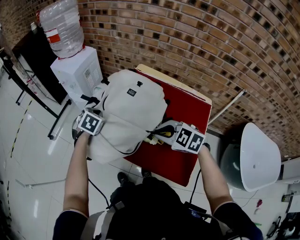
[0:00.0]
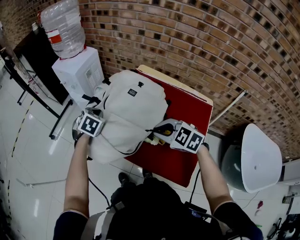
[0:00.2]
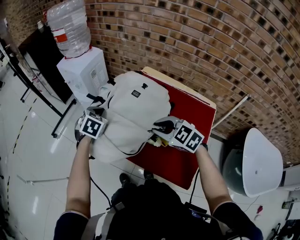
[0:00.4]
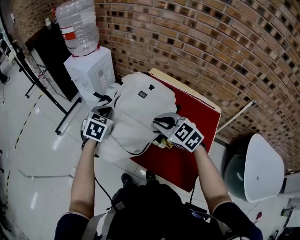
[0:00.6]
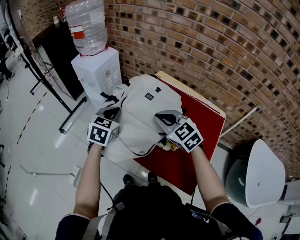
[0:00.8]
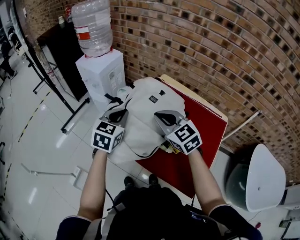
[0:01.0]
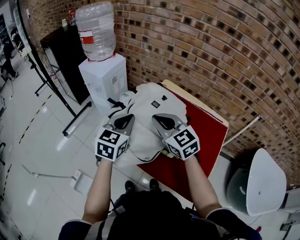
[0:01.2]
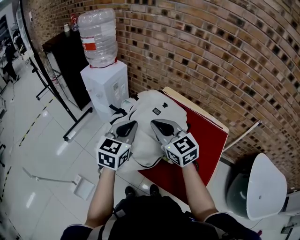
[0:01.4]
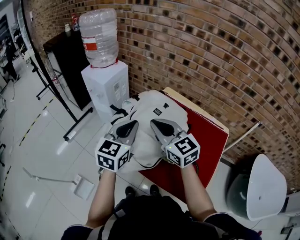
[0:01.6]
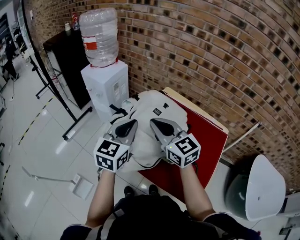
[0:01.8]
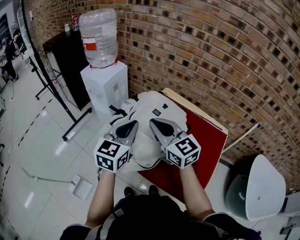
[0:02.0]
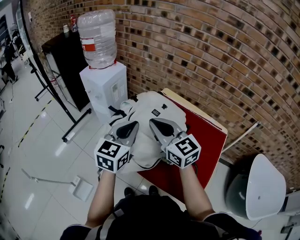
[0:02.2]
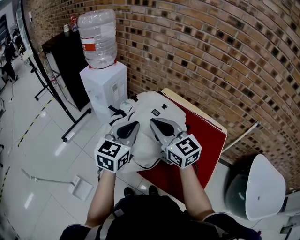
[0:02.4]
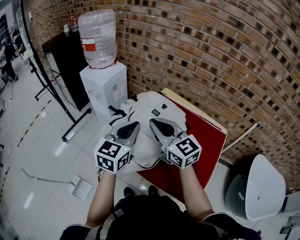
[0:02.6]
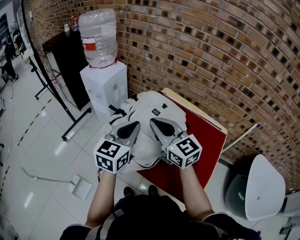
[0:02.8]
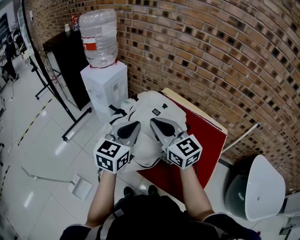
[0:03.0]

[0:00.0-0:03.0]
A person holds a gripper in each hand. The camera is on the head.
0:00.0 to 0:01.6: The left gripper shifts some 20 cm upward and backward, and tips its fingers upward by roughly 40 degrees. Meanwhile the right gripper goes approximately 20 cm upward, forward and to the left, and tilts its fingers about 40 degrees upward.
0:01.6 to 0:03.0: The grippers make only small movements.

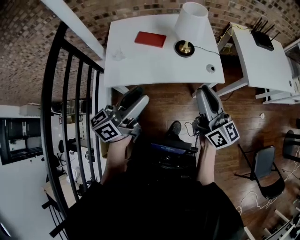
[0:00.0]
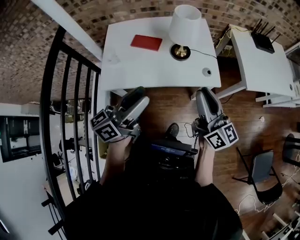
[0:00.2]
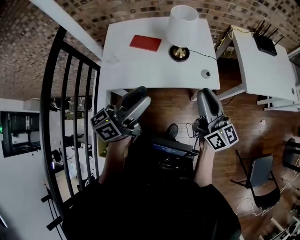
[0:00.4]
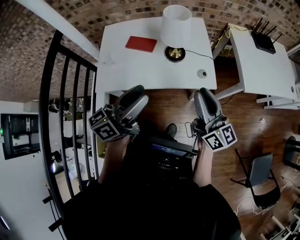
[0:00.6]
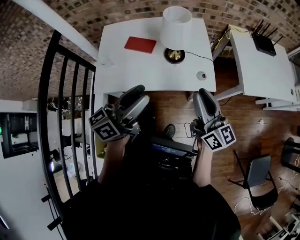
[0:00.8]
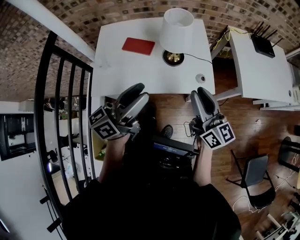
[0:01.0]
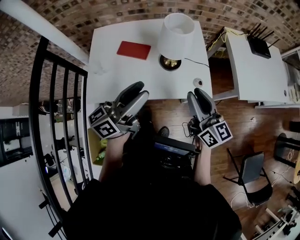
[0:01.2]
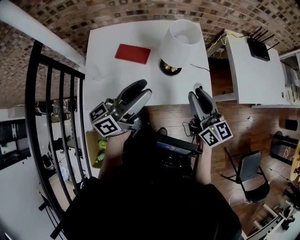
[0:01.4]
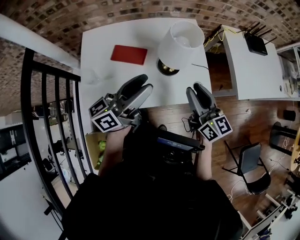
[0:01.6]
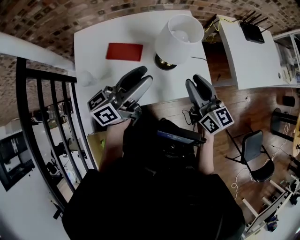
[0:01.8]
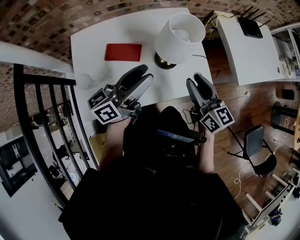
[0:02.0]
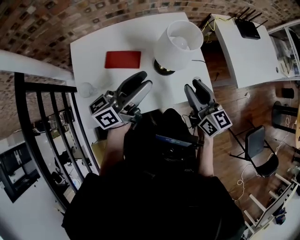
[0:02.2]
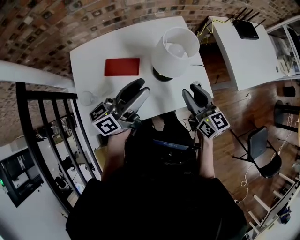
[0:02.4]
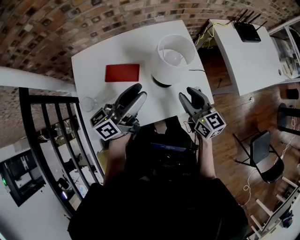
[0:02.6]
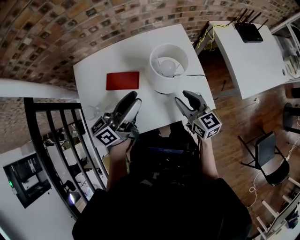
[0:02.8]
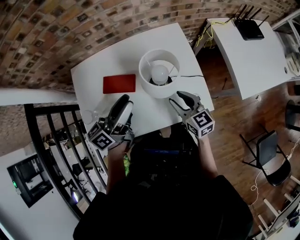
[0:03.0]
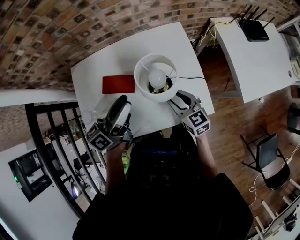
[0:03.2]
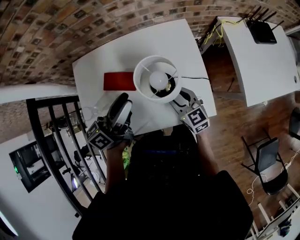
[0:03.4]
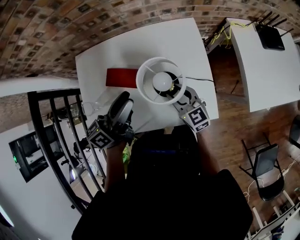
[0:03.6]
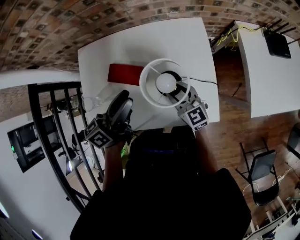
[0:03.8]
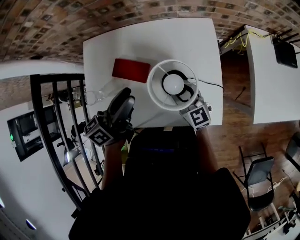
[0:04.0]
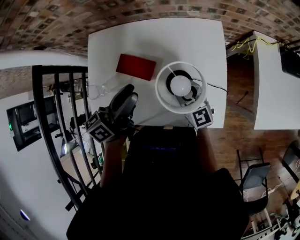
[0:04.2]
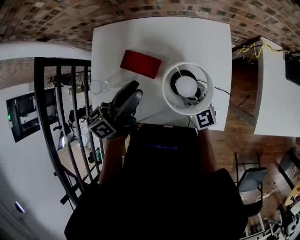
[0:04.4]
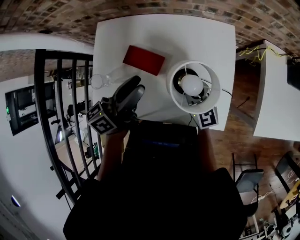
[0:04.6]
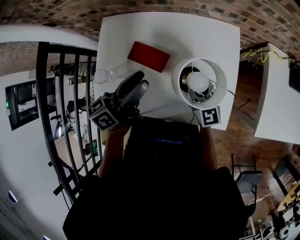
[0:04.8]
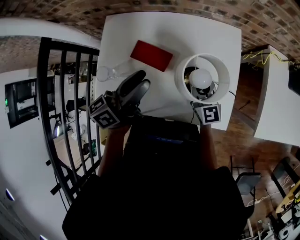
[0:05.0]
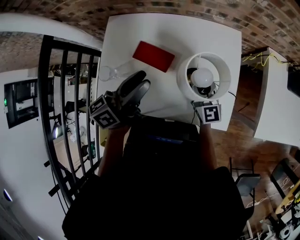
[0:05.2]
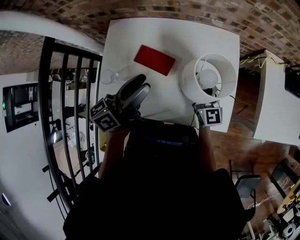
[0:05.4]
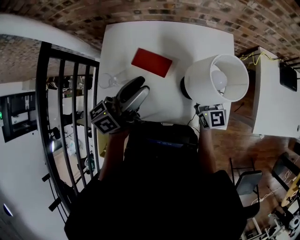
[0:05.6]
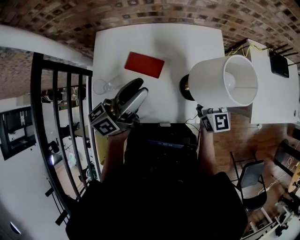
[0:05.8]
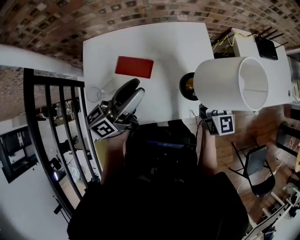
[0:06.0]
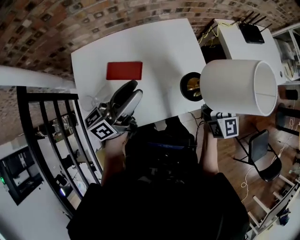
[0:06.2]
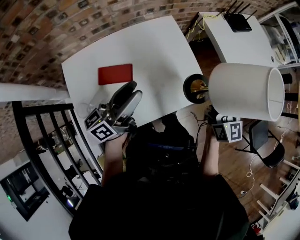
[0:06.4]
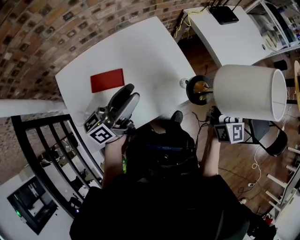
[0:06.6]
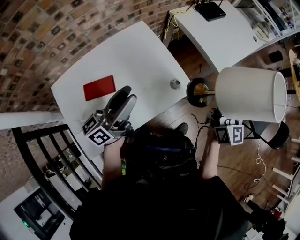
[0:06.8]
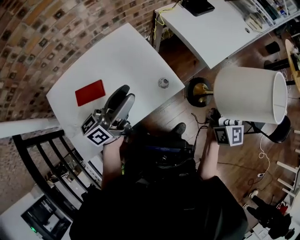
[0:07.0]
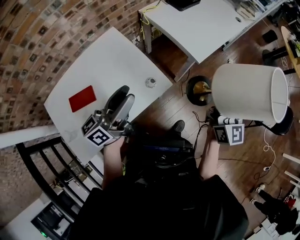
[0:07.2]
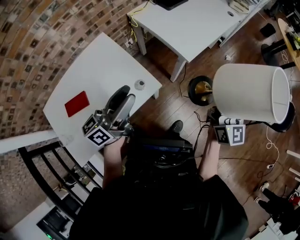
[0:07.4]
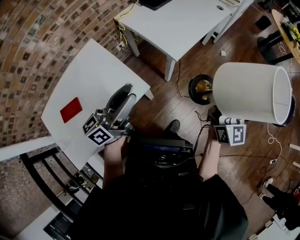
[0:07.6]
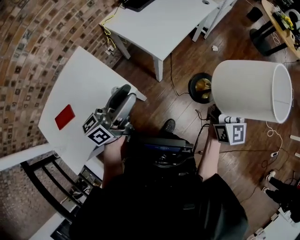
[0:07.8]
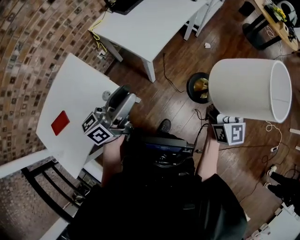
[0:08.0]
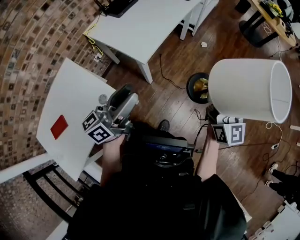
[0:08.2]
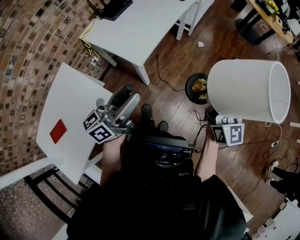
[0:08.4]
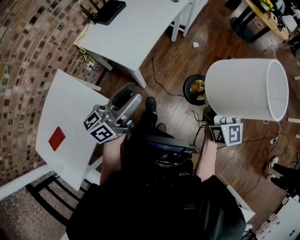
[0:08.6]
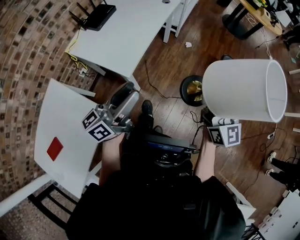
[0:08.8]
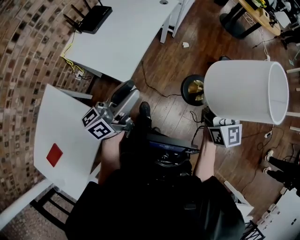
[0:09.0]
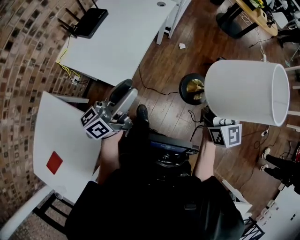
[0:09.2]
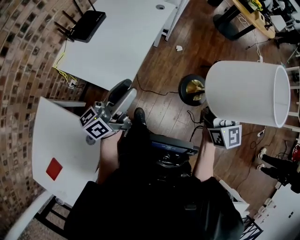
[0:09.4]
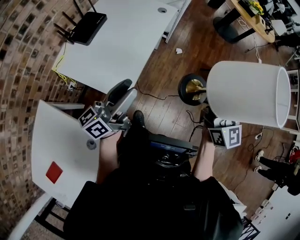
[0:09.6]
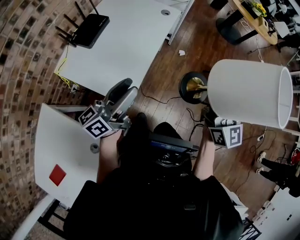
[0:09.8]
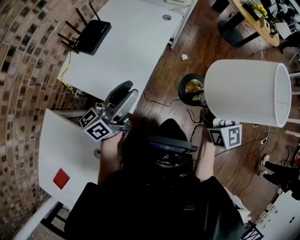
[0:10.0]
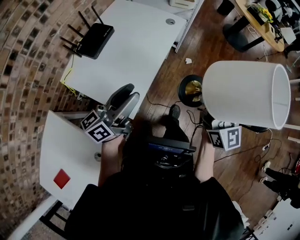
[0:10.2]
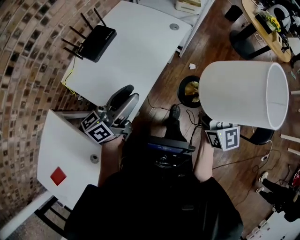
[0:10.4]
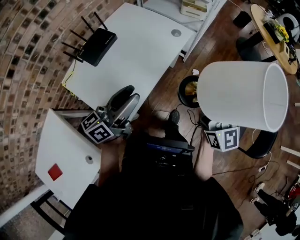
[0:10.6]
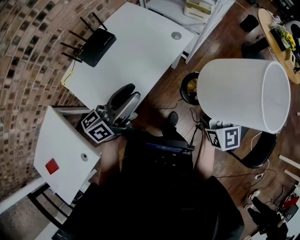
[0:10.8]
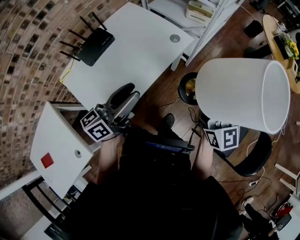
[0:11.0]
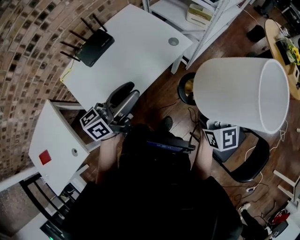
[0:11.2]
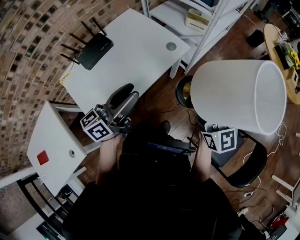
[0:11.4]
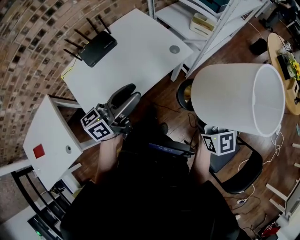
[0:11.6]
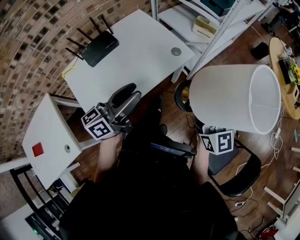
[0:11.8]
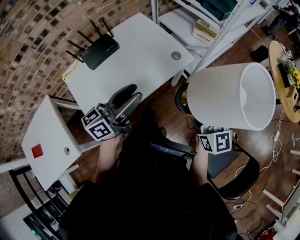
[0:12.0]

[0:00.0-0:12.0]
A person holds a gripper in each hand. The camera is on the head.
0:00.0 to 0:01.6: The two grippers go approximately 25 cm forward.
0:01.6 to 0:03.0: The right gripper travels downward and forward by roughly 15 cm; the left gripper goes roughly 15 cm forward and downward.
0:03.0 to 0:04.4: The right gripper moves forward and to the left, roughly 10 cm, swivels roughly 30 degrees, and closes; the left gripper heads forward, covering about 5 cm.
0:04.4 to 0:06.0: The left gripper heads backward, to the left and upward, covering approximately 10 cm; the right gripper shifts about 15 cm upward, and changes its angle by roughly 40 degrees.
0:06.0 to 0:07.6: Both grippers are carried about 60 cm. The right gripper swivels roughly 50 degrees. The left gripper rotates about 40 degrees.
0:07.6 to 0:09.0: The left gripper is displaced forward and to the right by some 35 cm, and changes its angle by roughly 20 degrees. Meanwhile the right gripper goes about 25 cm to the right and forward.
0:09.0 to 0:10.4: Both grippers move forward, about 25 cm.
0:10.4 to 0:12.0: The two grippers go some 25 cm forward and to the right. The right gripper rotates roughly 20 degrees.

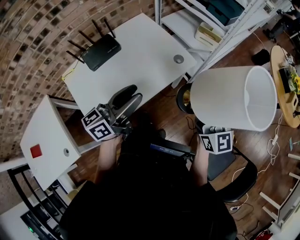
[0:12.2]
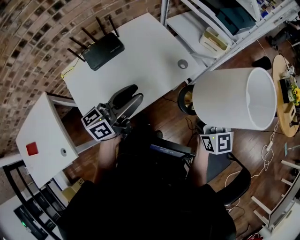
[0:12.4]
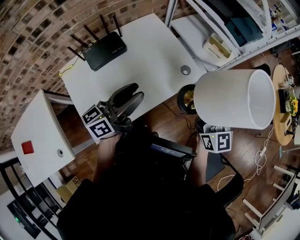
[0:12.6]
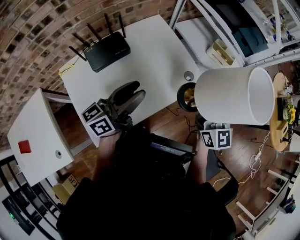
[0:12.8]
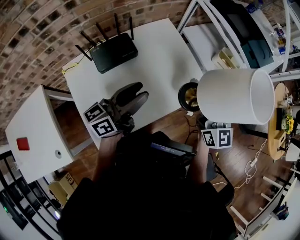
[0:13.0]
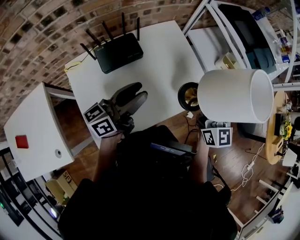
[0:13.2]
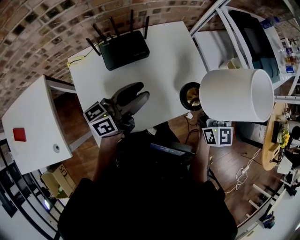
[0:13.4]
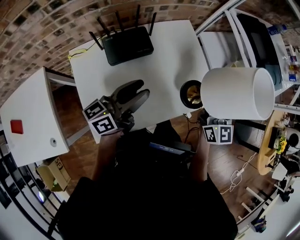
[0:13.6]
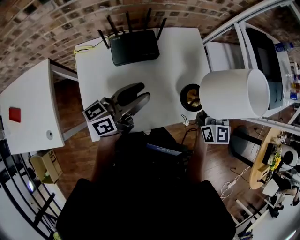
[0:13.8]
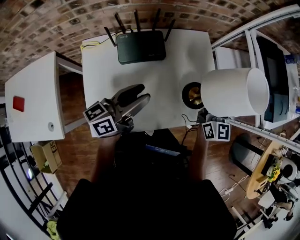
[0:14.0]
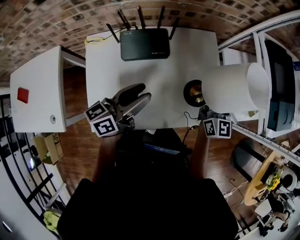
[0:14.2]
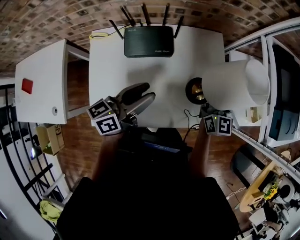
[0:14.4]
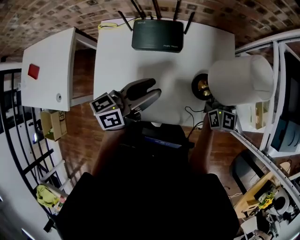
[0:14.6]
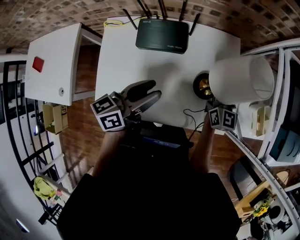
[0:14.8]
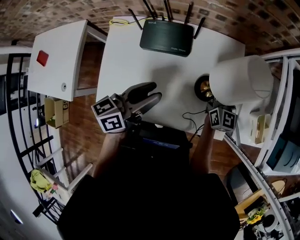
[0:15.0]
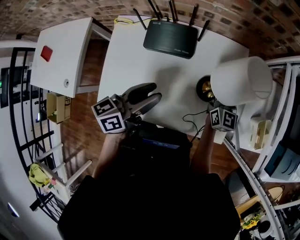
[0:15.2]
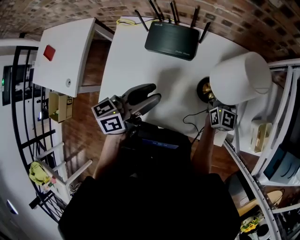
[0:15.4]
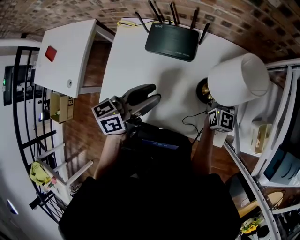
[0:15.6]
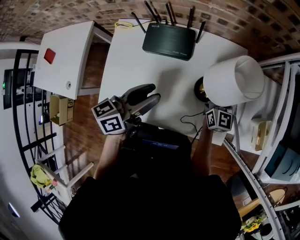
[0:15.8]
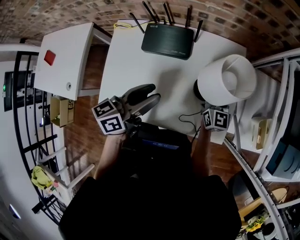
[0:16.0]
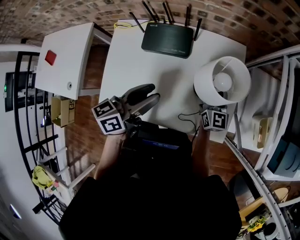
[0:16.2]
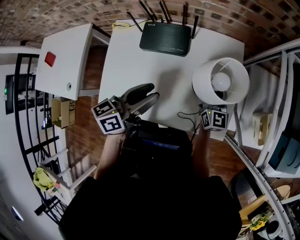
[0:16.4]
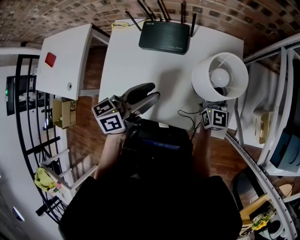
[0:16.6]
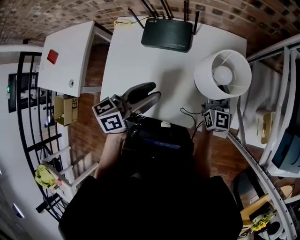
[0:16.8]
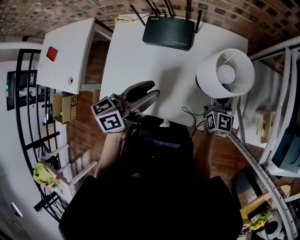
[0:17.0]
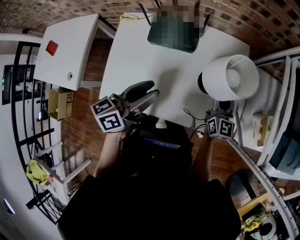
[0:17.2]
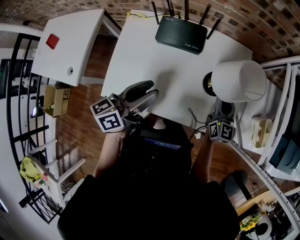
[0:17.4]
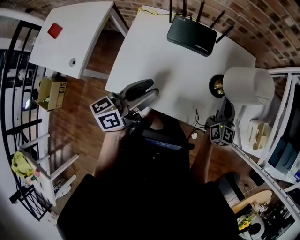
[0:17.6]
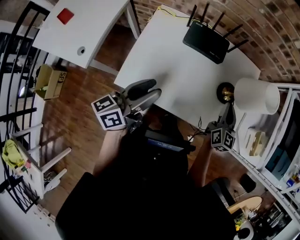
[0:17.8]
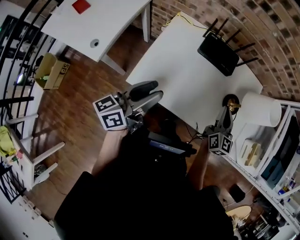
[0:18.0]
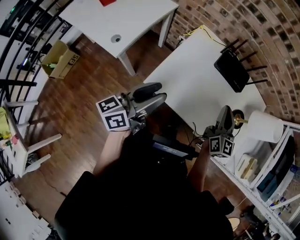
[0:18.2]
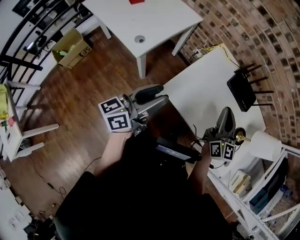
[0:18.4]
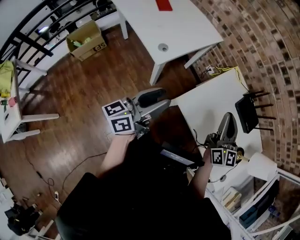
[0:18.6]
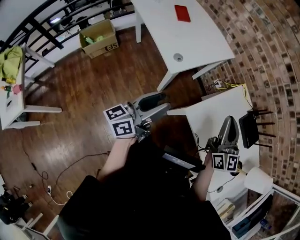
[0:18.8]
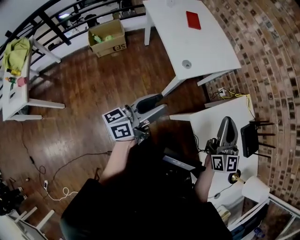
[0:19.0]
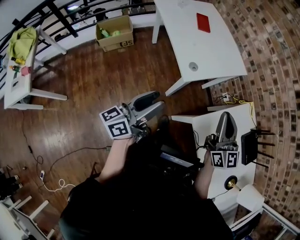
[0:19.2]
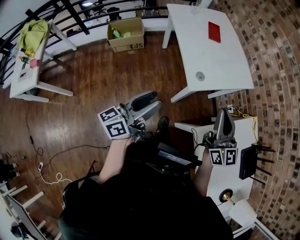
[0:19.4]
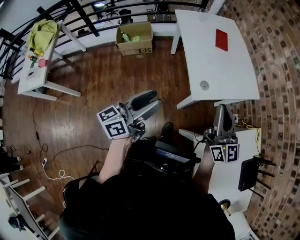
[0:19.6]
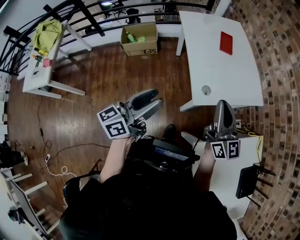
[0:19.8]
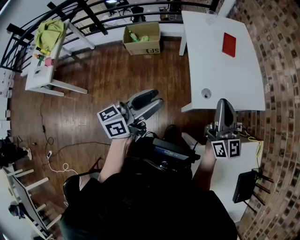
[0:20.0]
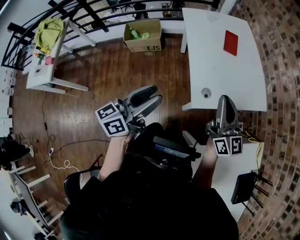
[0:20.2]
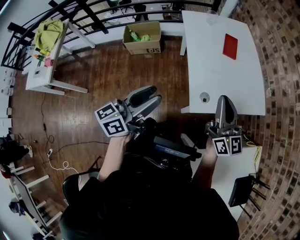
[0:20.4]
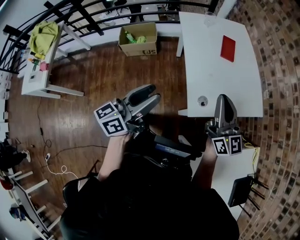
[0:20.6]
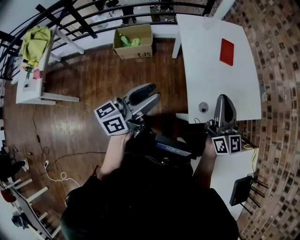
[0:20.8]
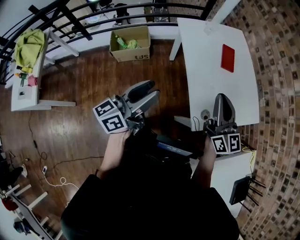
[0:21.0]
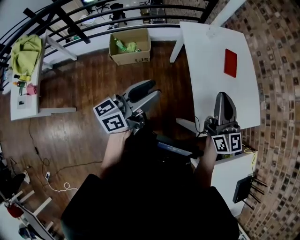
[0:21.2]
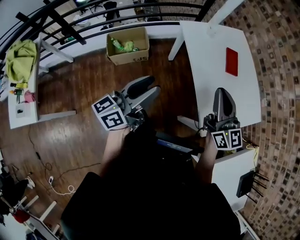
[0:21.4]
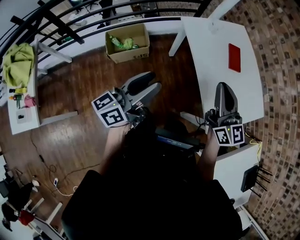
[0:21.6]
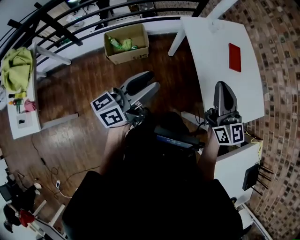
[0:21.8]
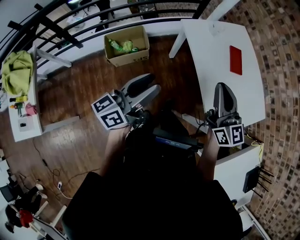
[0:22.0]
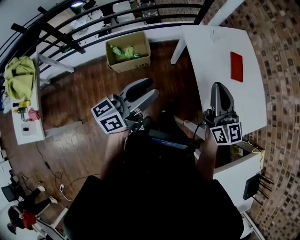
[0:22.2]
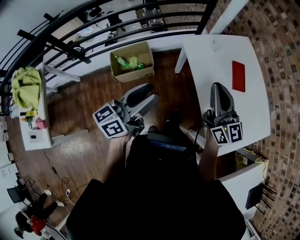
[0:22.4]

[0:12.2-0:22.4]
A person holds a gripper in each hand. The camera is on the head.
0:12.2 to 0:13.6: The right gripper is displaced forward and to the left by roughly 35 cm; the left gripper goes about 30 cm to the left and forward.
0:13.6 to 0:15.2: The left gripper travels to the right by some 5 cm, and swivels about 30 degrees. Meanwhile the right gripper travels forward and downward by some 25 cm, and changes its angle by approximately 20 degrees.
0:15.2 to 0:16.6: The left gripper shifts by roughly 5 cm. The right gripper heads backward, covering approximately 5 cm.
0:16.6 to 0:18.0: The left gripper goes approximately 35 cm to the left and backward, and rotates roughly 20 degrees. The right gripper moves backward and to the left, about 25 cm, and closes up.
0:18.0 to 0:19.4: The two grippers travel together, roughly 60 cm. The left gripper swivels about 50 degrees, while the right gripper turns by about 70 degrees.
0:19.4 to 0:21.0: The grippers both shift forward and to the left by about 35 cm.
0:21.0 to 0:22.4: Both grippers move forward and to the left, roughly 25 cm.
